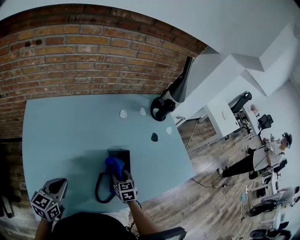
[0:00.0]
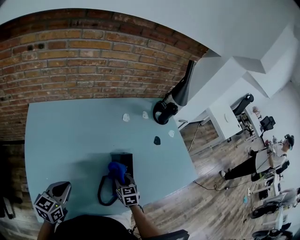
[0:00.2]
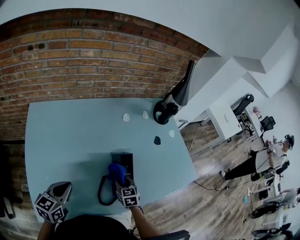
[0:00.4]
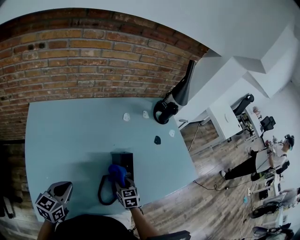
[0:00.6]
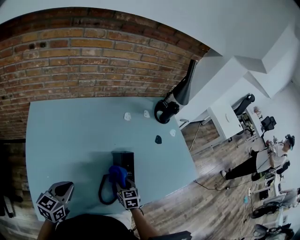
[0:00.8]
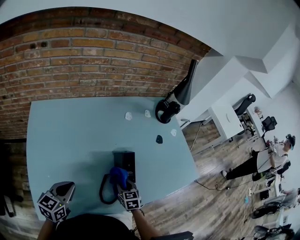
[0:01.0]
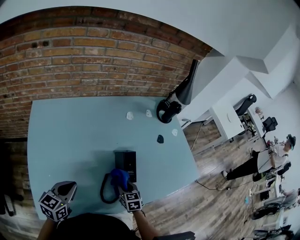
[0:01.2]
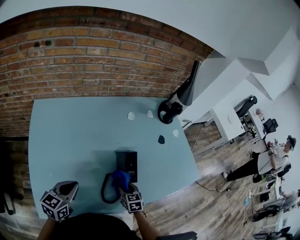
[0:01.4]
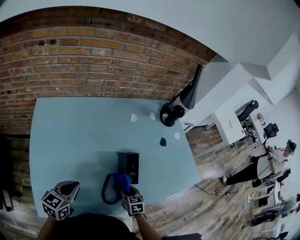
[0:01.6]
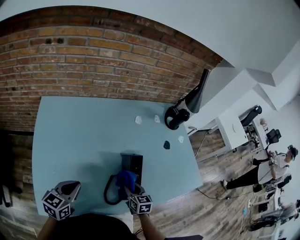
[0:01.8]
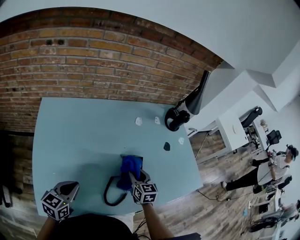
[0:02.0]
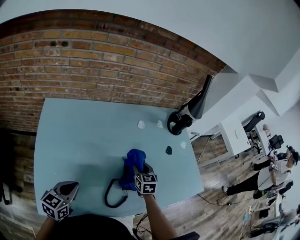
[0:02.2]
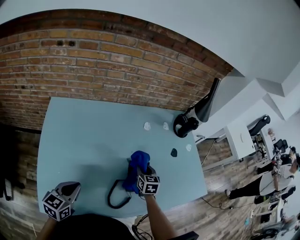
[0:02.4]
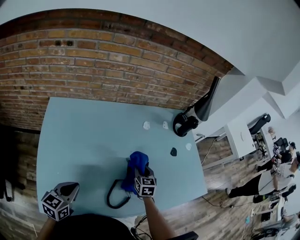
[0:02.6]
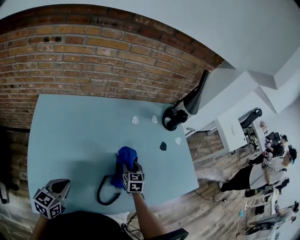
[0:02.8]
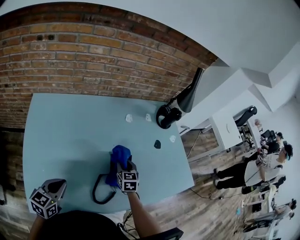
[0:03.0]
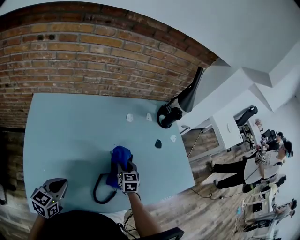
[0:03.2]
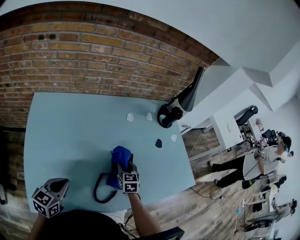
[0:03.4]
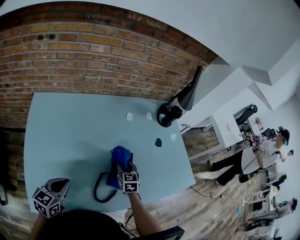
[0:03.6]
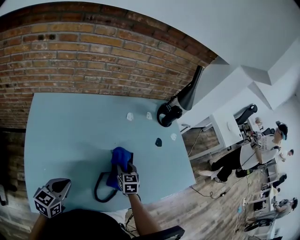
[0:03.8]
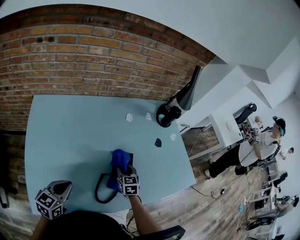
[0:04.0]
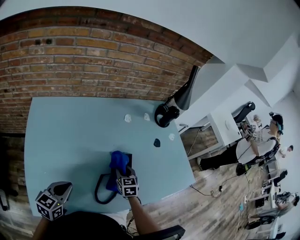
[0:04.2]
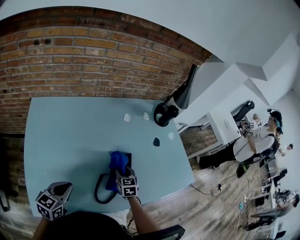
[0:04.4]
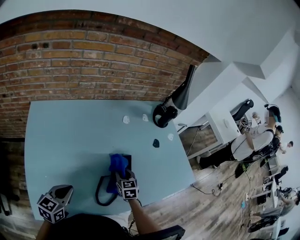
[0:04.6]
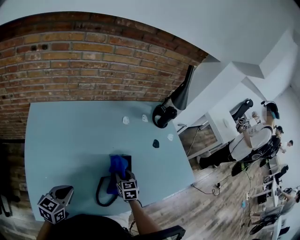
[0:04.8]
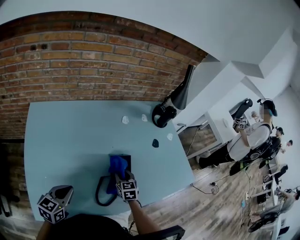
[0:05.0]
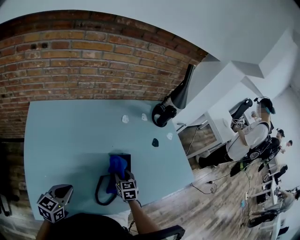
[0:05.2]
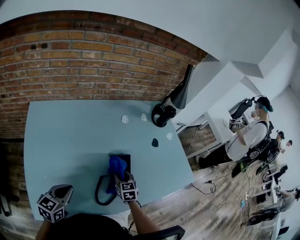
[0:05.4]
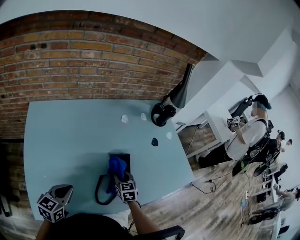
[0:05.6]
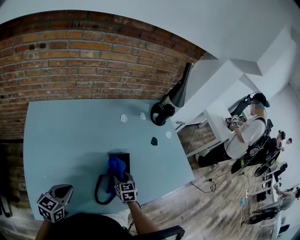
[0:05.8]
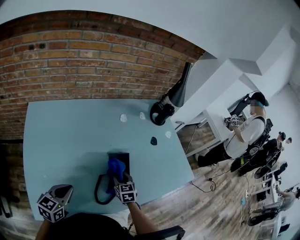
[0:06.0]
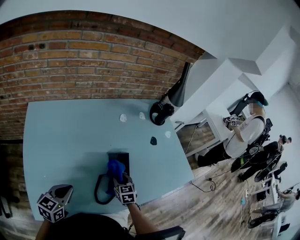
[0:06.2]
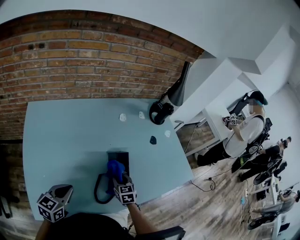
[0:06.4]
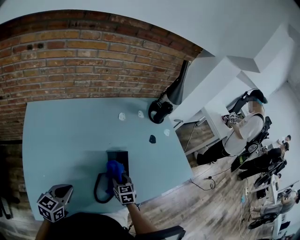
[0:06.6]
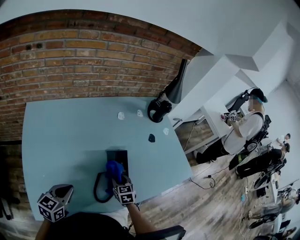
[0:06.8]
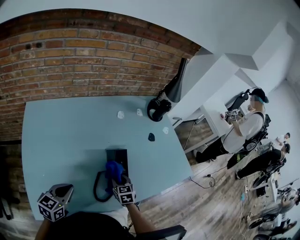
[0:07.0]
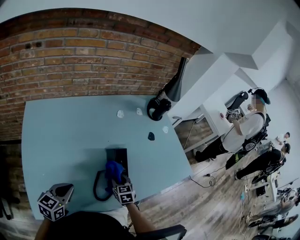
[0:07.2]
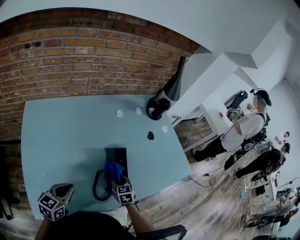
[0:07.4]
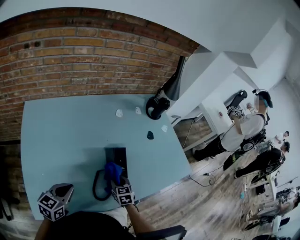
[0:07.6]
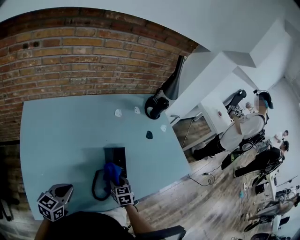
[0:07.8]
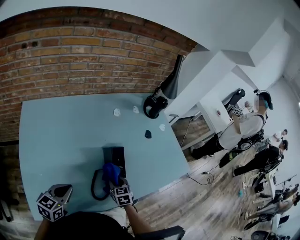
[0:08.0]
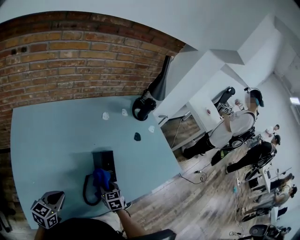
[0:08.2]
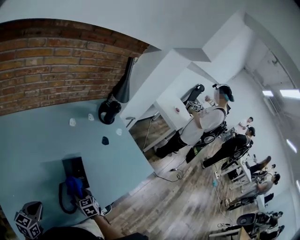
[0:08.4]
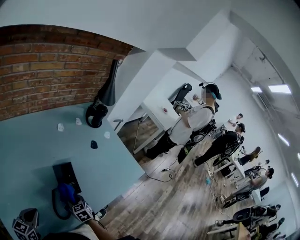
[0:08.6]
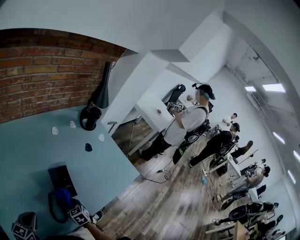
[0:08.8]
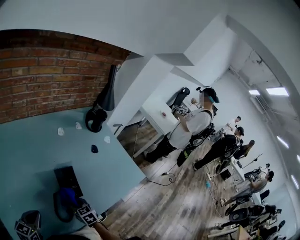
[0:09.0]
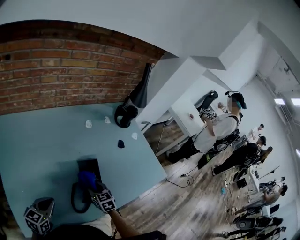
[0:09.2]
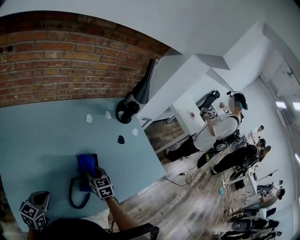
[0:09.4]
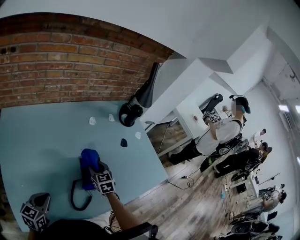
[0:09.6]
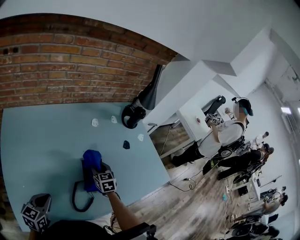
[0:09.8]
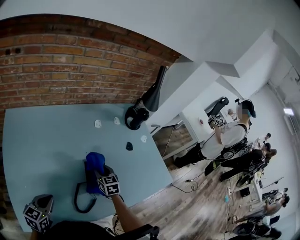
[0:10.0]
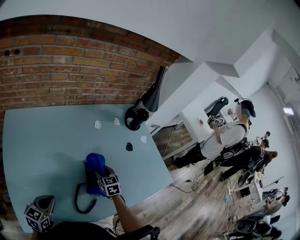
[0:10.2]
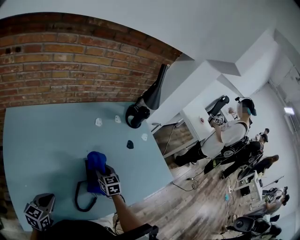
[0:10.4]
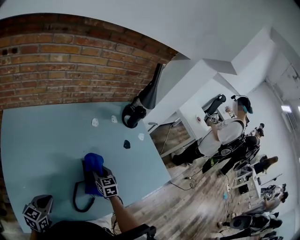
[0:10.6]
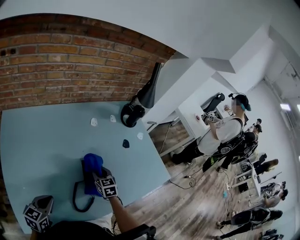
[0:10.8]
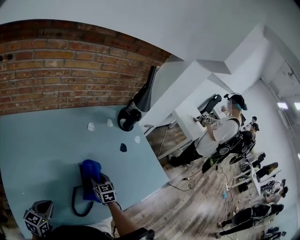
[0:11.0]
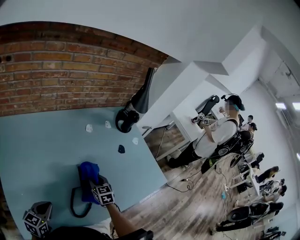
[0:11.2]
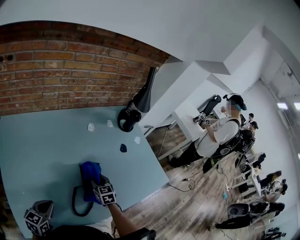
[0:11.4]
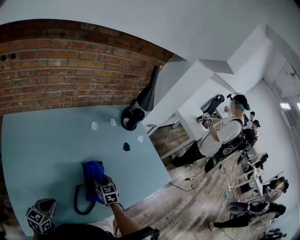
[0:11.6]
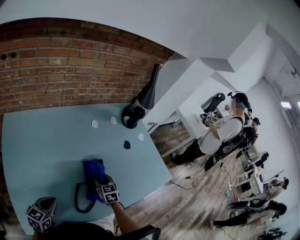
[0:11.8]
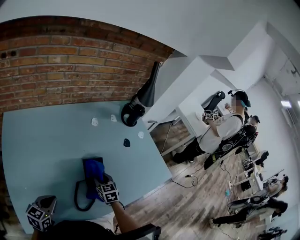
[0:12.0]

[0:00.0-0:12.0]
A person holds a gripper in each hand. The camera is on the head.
0:00.0 to 0:01.6: The right gripper heads backward, covering roughly 10 cm.
0:01.6 to 0:03.0: The right gripper travels forward and upward by some 15 cm.
0:03.0 to 0:04.4: The grippers stay close to where they were, moving slightly.
0:04.4 to 0:06.0: The grippers move only a little.
0:06.0 to 0:07.6: The grippers stay close to where they were, moving slightly.
0:07.6 to 0:09.0: There are only small adjustments of the grippers.
0:09.0 to 0:10.4: The right gripper shifts about 15 cm forward.
0:10.4 to 0:12.0: The right gripper changes place by some 5 cm.

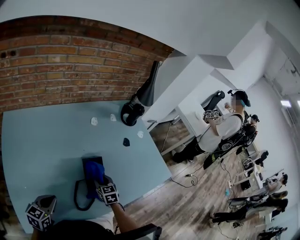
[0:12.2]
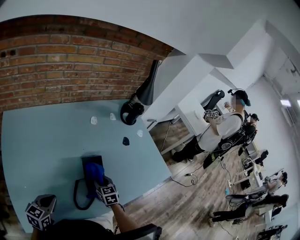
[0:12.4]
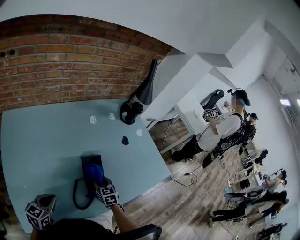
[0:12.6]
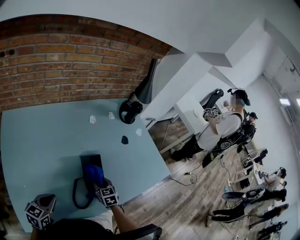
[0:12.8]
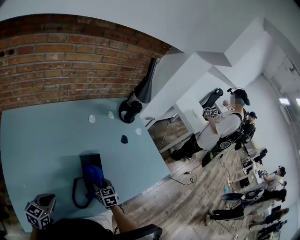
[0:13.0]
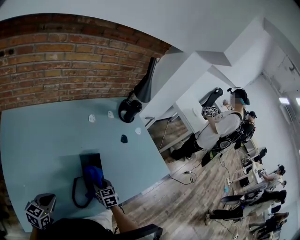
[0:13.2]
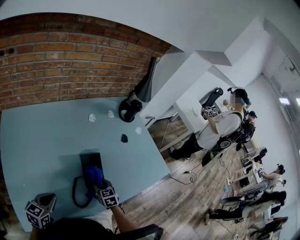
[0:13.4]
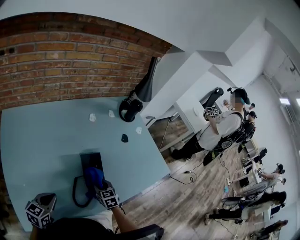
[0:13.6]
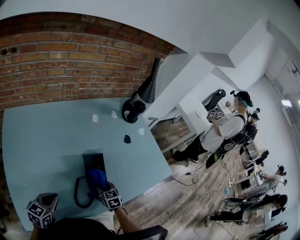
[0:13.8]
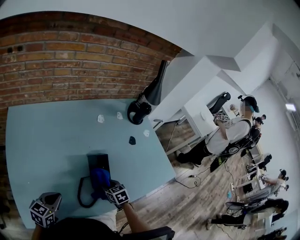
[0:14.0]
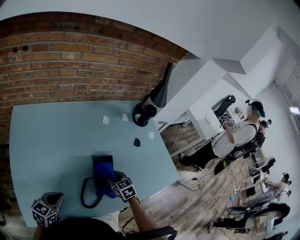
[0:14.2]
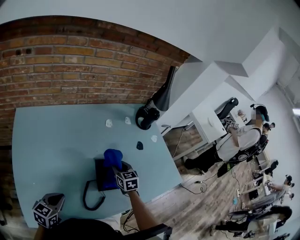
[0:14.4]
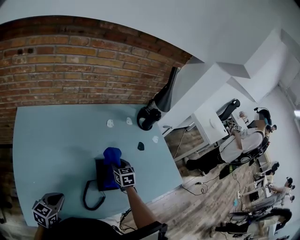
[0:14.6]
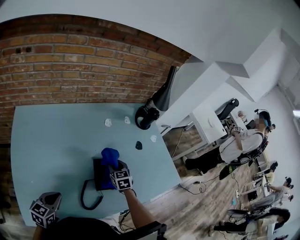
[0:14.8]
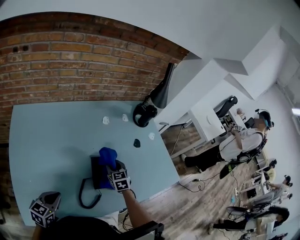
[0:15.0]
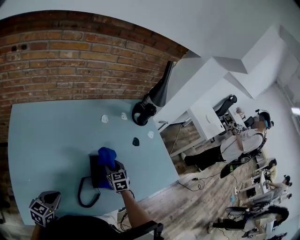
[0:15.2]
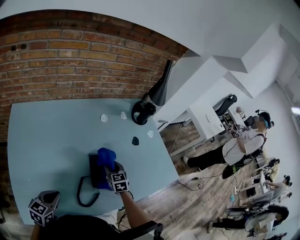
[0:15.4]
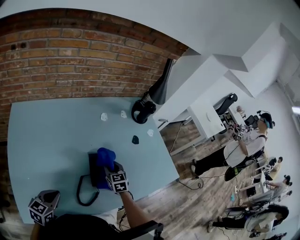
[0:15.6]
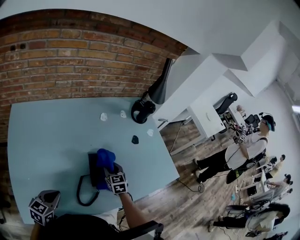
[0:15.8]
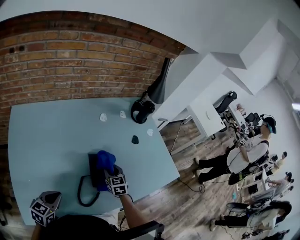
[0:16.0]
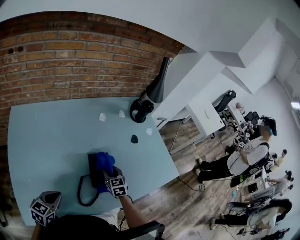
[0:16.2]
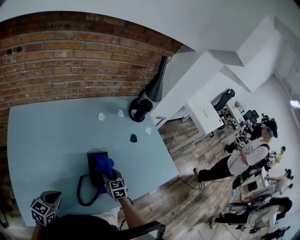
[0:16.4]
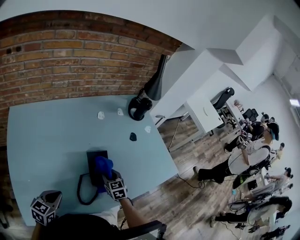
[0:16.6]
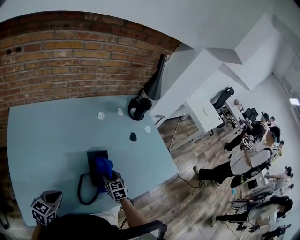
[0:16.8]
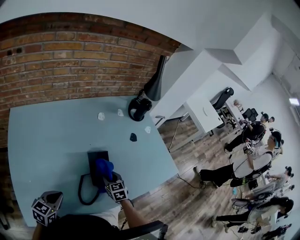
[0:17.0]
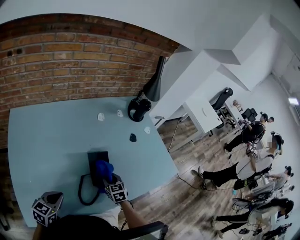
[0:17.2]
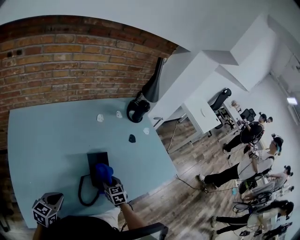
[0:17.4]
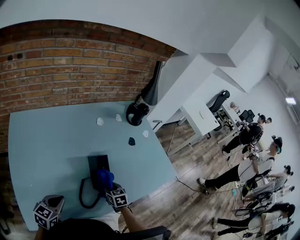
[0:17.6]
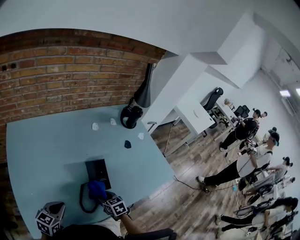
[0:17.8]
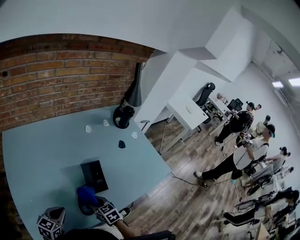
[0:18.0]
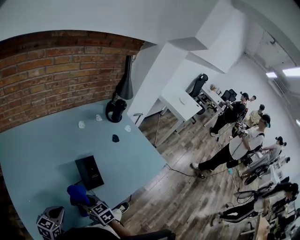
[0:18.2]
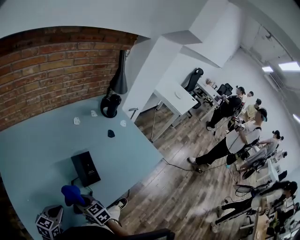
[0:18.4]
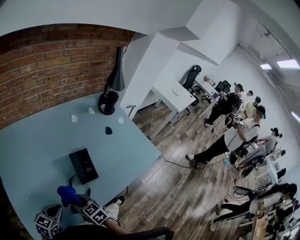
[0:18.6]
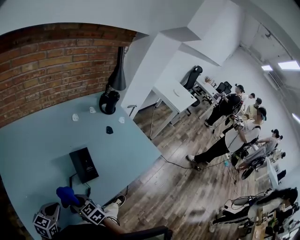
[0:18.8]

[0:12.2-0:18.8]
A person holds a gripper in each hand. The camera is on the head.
0:12.2 to 0:13.8: The right gripper heads backward, covering approximately 5 cm.
0:13.8 to 0:15.4: The right gripper is displaced forward by roughly 10 cm.
0:15.4 to 0:17.2: The right gripper goes approximately 10 cm backward.
0:17.2 to 0:18.8: The right gripper travels backward and to the left by roughly 20 cm, and turns by roughly 20 degrees.

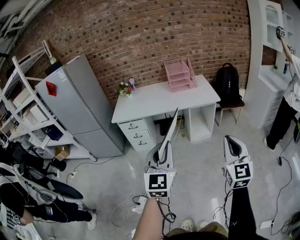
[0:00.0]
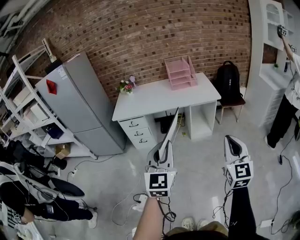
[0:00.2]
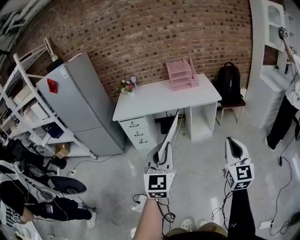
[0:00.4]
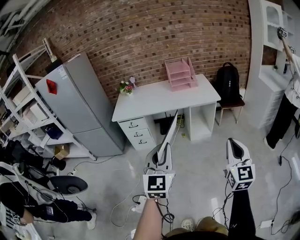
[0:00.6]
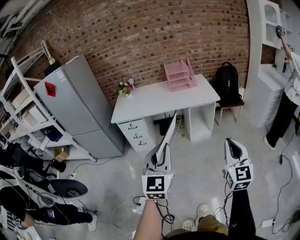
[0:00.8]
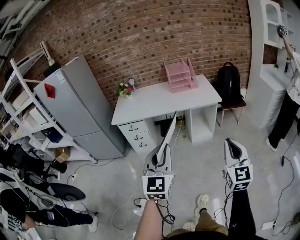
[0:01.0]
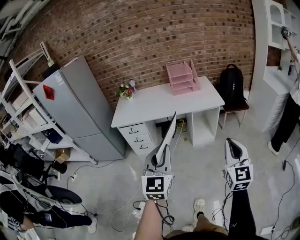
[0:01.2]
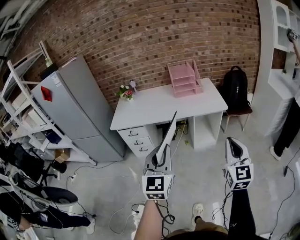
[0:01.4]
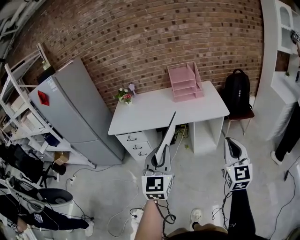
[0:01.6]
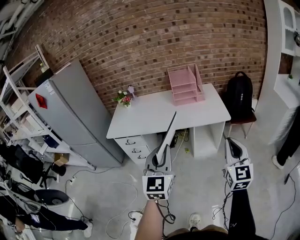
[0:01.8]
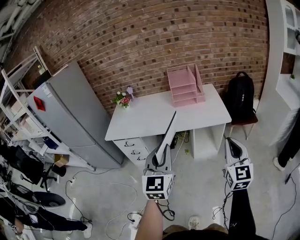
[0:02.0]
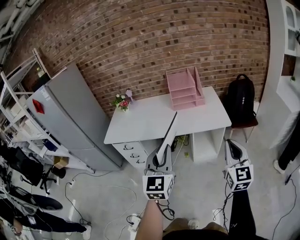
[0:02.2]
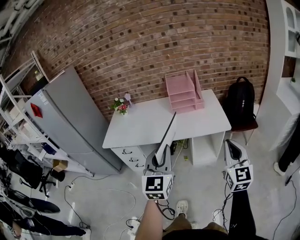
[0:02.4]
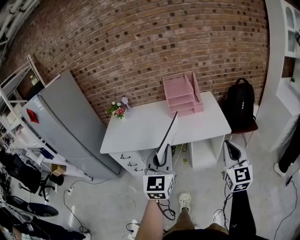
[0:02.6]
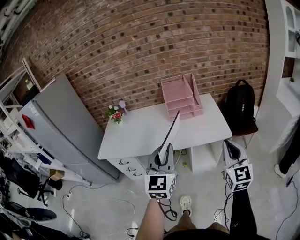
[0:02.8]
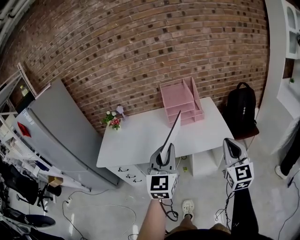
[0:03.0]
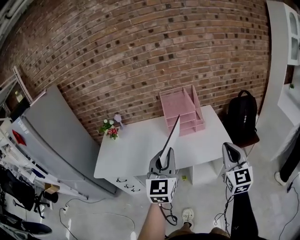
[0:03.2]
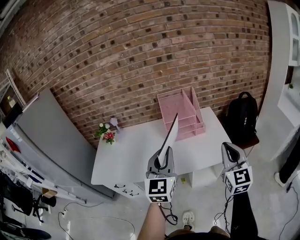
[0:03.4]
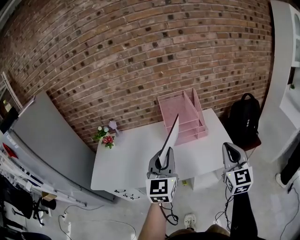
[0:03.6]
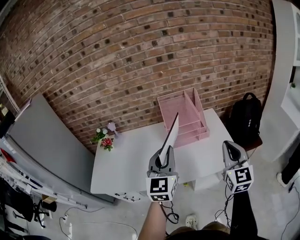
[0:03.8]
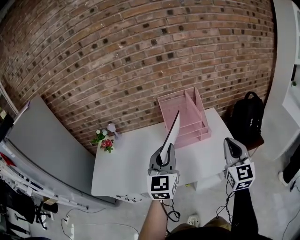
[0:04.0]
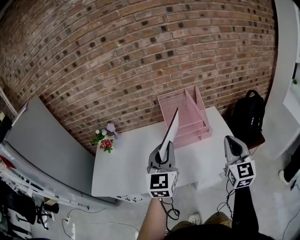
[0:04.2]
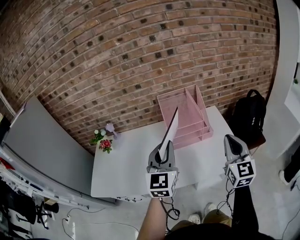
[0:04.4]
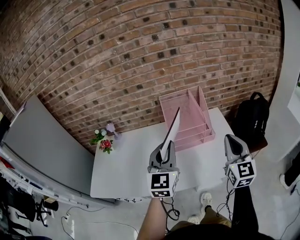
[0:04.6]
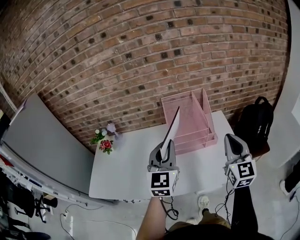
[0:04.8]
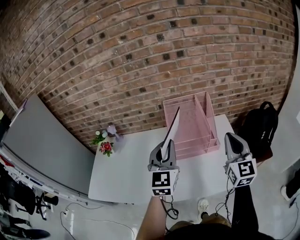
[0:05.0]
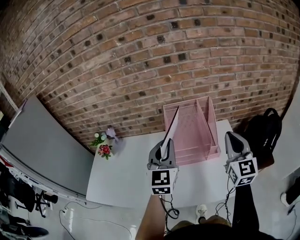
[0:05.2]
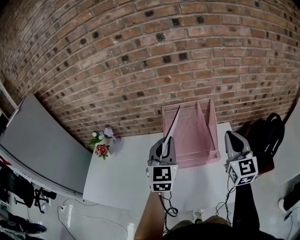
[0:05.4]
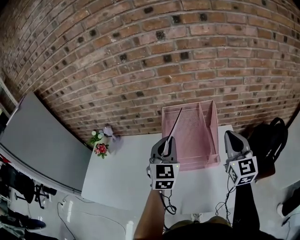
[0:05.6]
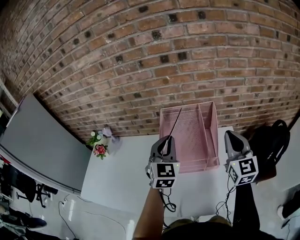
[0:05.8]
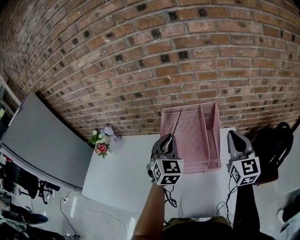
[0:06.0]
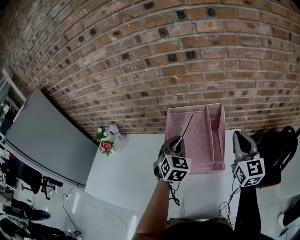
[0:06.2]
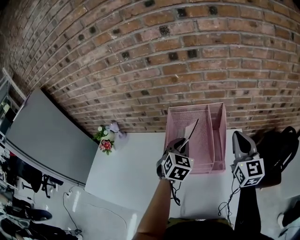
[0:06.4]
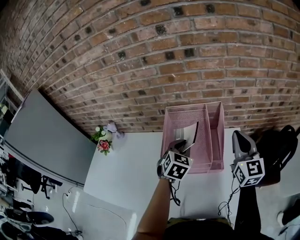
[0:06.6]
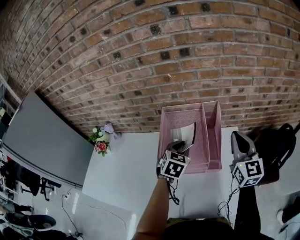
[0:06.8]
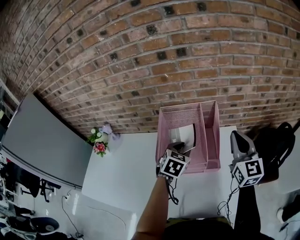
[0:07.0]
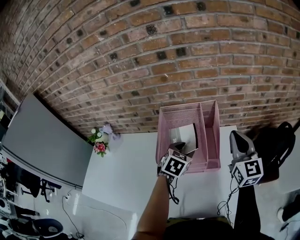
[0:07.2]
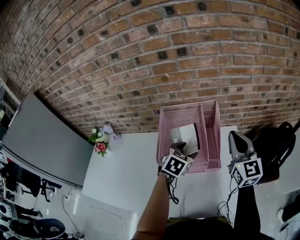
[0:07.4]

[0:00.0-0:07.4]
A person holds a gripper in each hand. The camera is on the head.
0:00.0 to 0:01.4: Both grippers travel together forward, roughly 15 cm.
0:01.4 to 0:03.0: Both grippers move forward, some 35 cm.
0:03.0 to 0:04.4: Both grippers move forward, roughly 25 cm.
0:04.4 to 0:06.0: Both grippers travel together forward, some 30 cm. The left gripper swivels some 30 degrees.
0:06.0 to 0:07.4: The left gripper moves downward and to the right, approximately 15 cm, swivels roughly 40 degrees, and opens.
